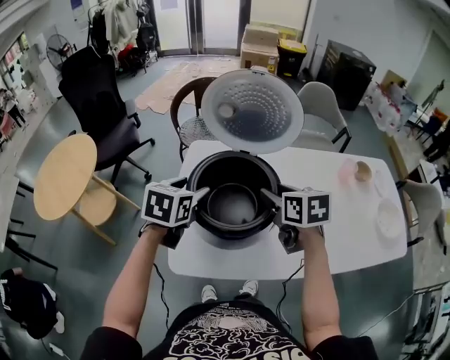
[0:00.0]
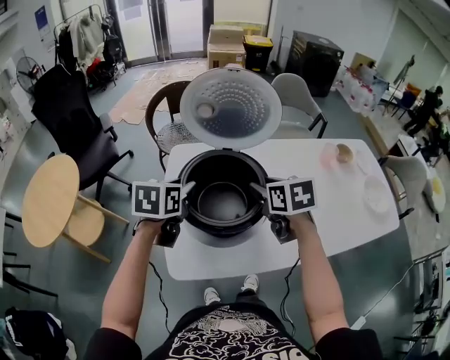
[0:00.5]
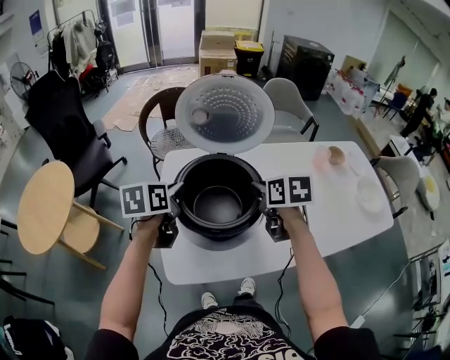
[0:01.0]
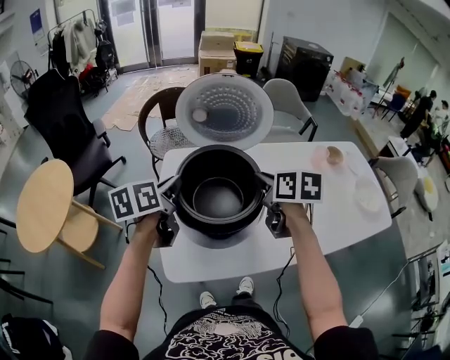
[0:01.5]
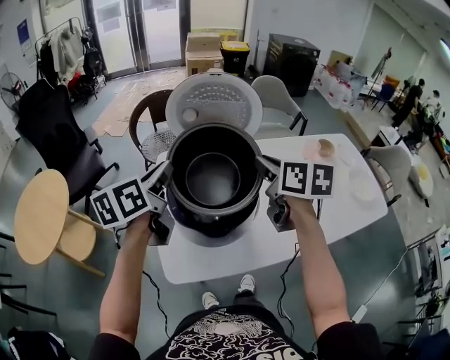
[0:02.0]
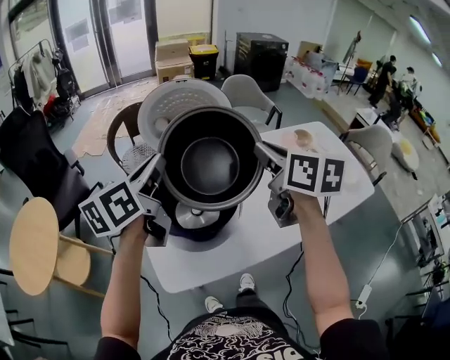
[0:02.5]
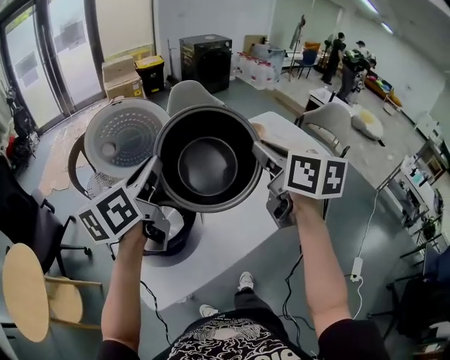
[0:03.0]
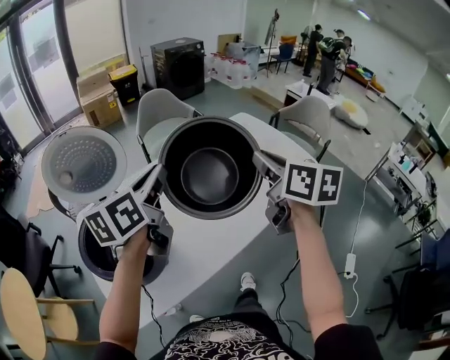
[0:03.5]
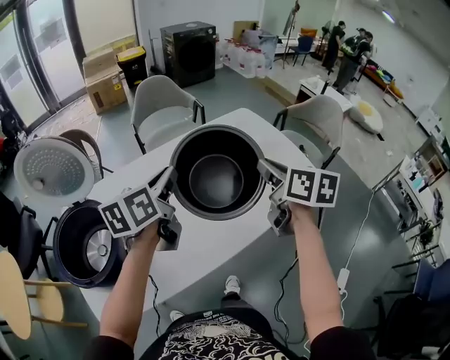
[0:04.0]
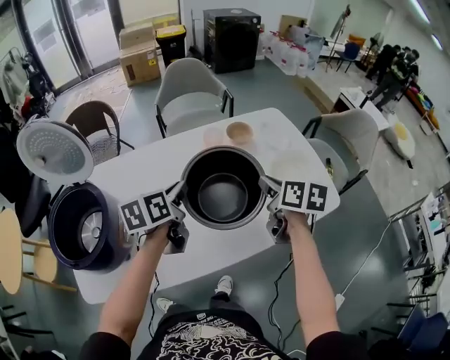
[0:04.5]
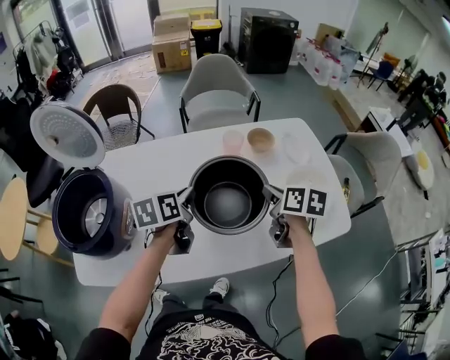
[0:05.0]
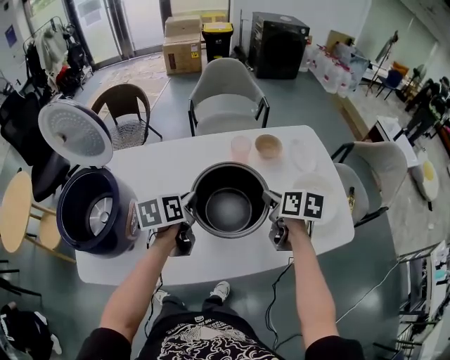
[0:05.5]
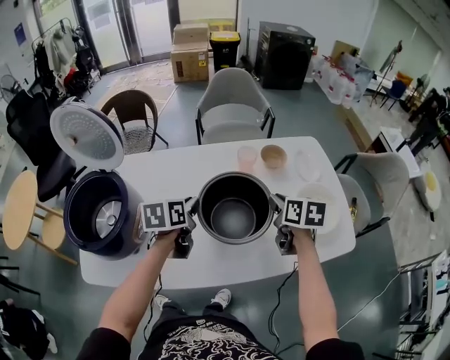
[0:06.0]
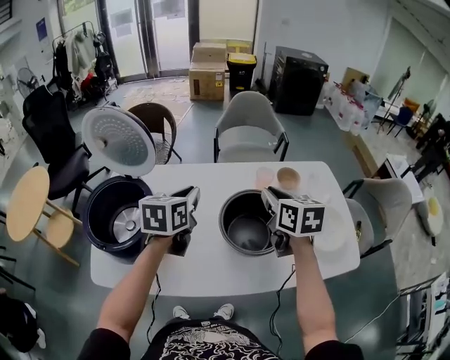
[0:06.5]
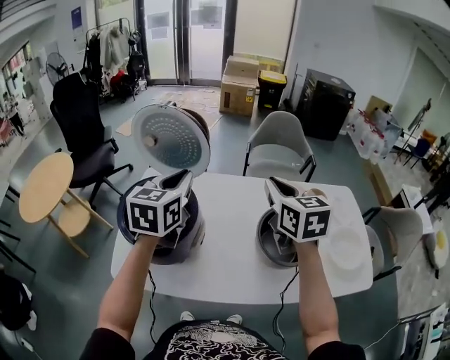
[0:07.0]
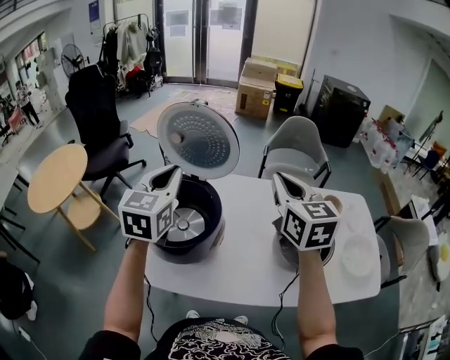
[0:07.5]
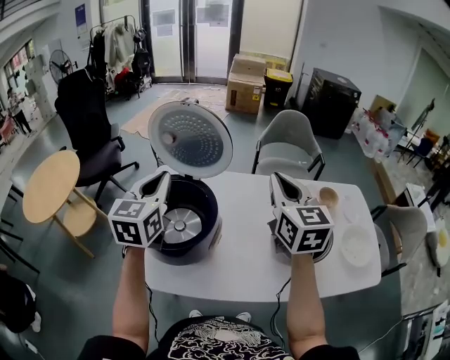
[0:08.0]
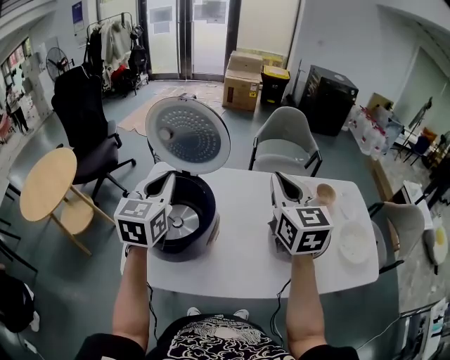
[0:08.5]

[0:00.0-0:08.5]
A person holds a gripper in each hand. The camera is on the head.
0:00.0 to 0:02.0: The grippers both shift upward by roughly 10 cm. The left gripper turns by approximately 40 degrees, and closes up. The right gripper changes its angle by about 20 degrees, and closes up.
0:02.0 to 0:04.0: The two grippers travel together, some 60 cm. The left gripper changes its angle by about 20 degrees, while the right gripper turns by roughly 30 degrees.
0:04.0 to 0:06.5: The left gripper reaches approximately 20 cm downward, then returns, and changes its angle by roughly 30 degrees, while the right gripper travels downward and back again, some 20 cm each way, and rotates some 30 degrees.
0:06.5 to 0:08.5: The right gripper heads to the left and upward, covering approximately 30 cm, and changes its angle by about 30 degrees, while the left gripper travels to the left by approximately 30 cm, and turns by about 30 degrees.

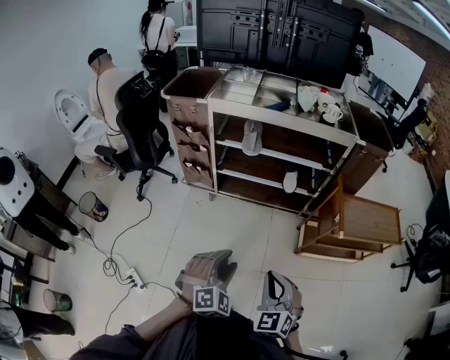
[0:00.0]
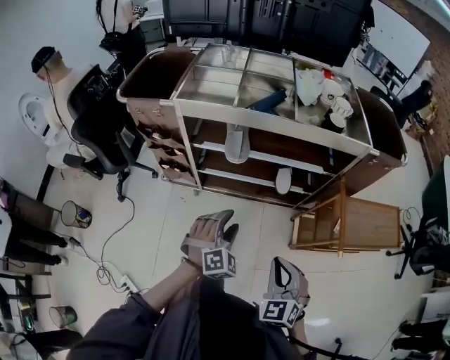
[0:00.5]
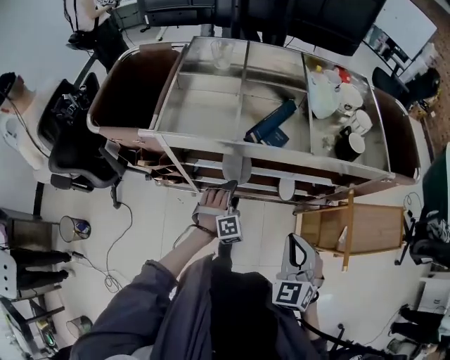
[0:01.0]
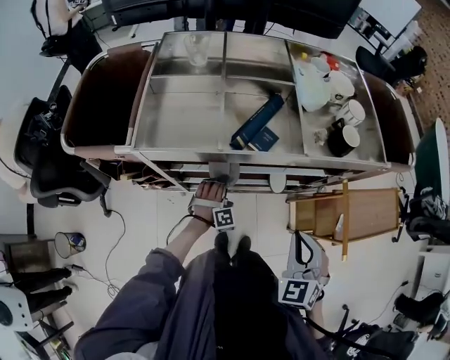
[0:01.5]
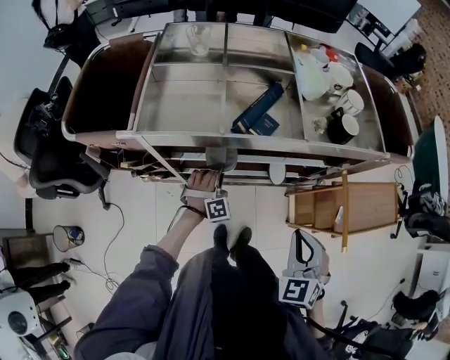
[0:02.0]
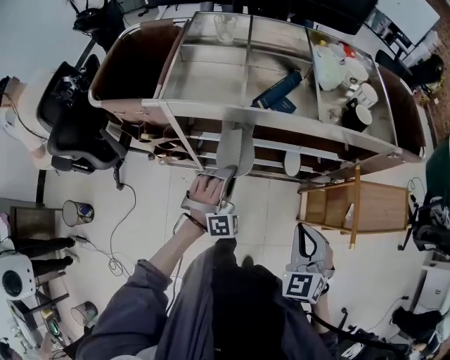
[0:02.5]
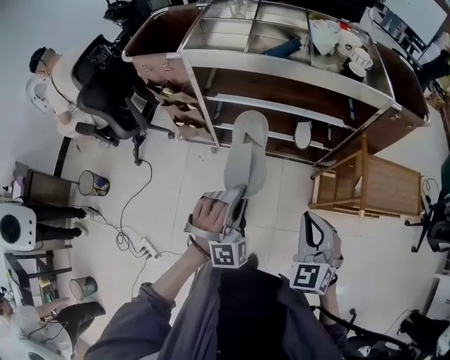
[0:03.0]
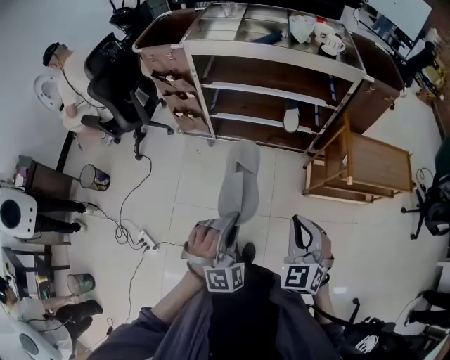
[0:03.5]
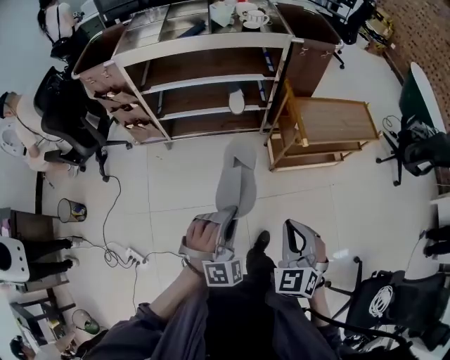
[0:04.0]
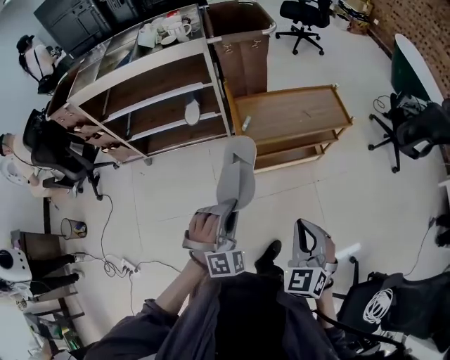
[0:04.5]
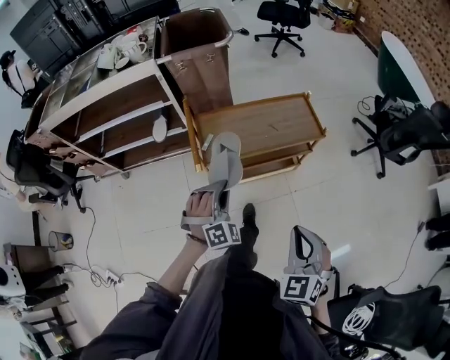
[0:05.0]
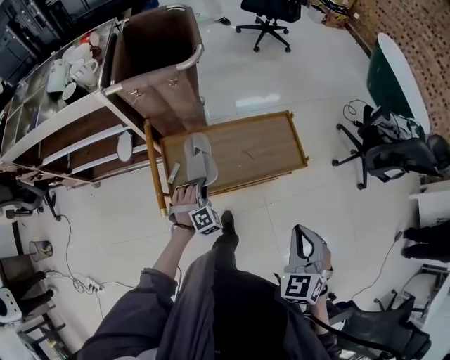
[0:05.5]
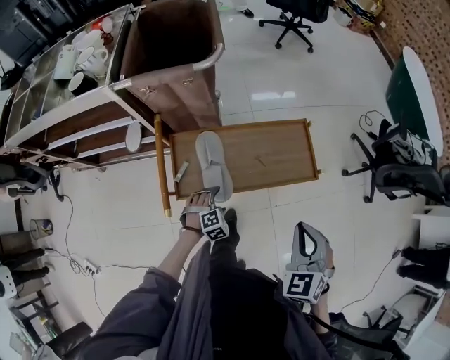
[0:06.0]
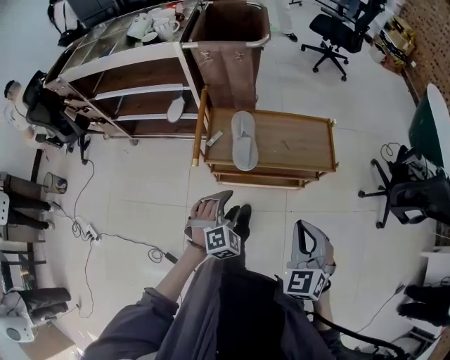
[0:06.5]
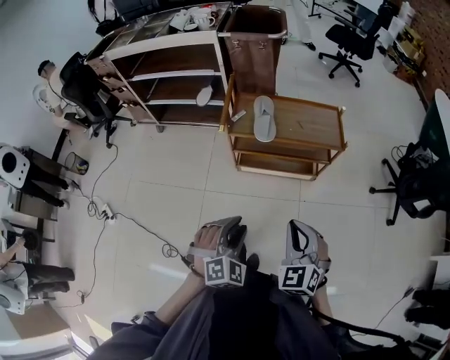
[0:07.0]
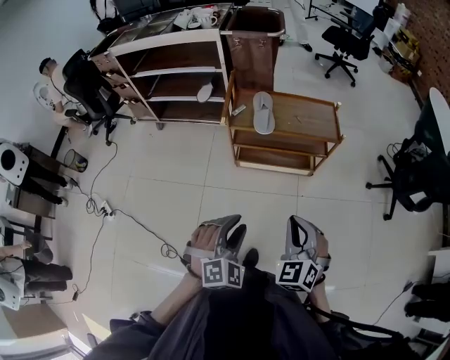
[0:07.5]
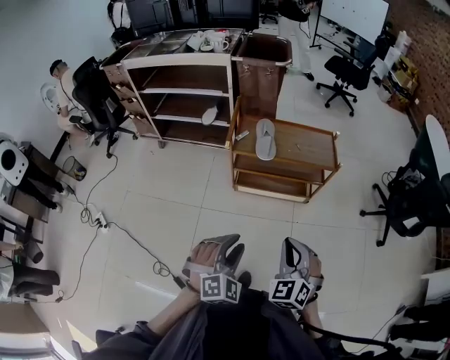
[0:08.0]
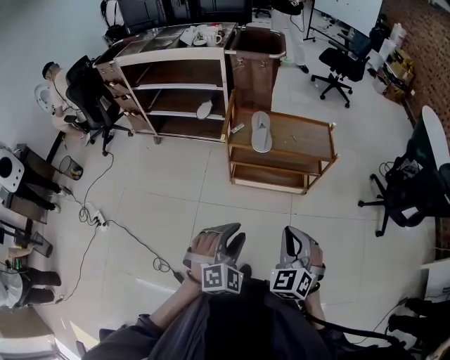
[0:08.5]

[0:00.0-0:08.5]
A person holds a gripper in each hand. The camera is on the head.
0:00.0 to 0:02.0: The pair of grippers is taken forward, about 50 cm. The left gripper rotates roughly 20 degrees, and closes its fingers.
0:02.0 to 0:04.0: The two grippers travel together, backward, about 60 cm.
0:04.0 to 0:06.5: The two grippers travel together, to the right and forward, some 60 cm. The left gripper rotates some 20 degrees, and opens up.
0:06.5 to 0:08.5: The left gripper shifts about 35 cm backward and upward, and closes its fingers. Meanwhile the right gripper shifts some 25 cm backward.

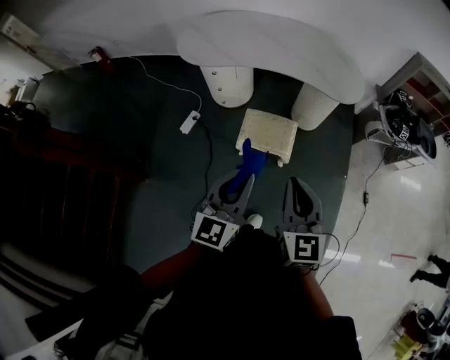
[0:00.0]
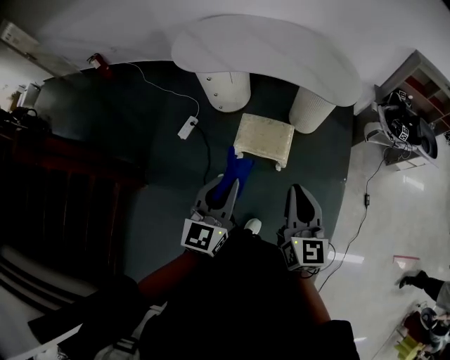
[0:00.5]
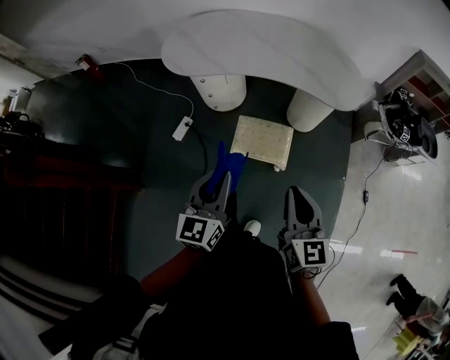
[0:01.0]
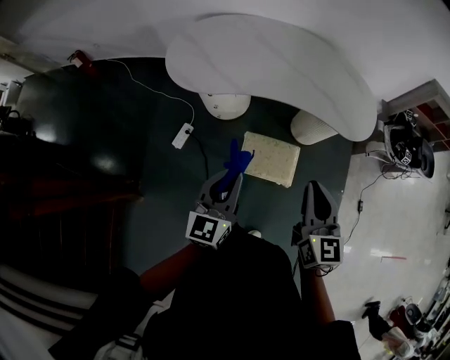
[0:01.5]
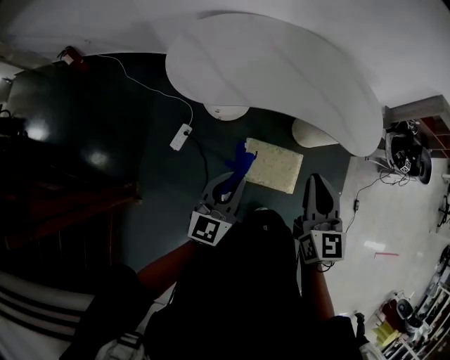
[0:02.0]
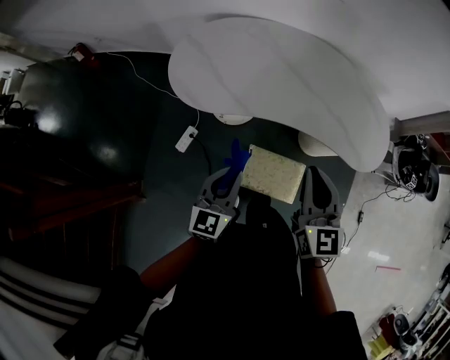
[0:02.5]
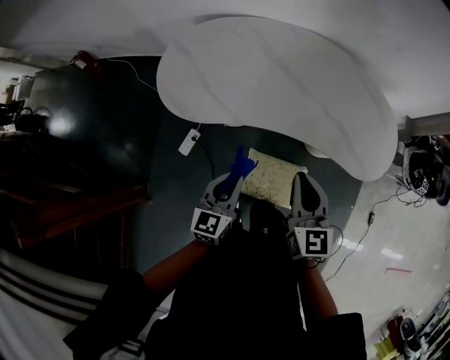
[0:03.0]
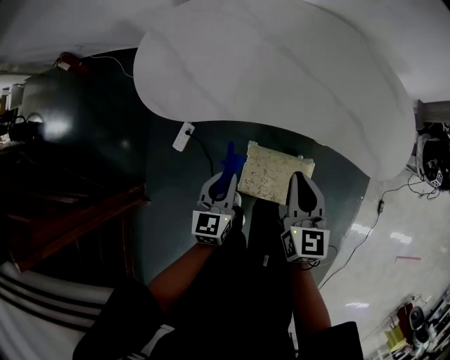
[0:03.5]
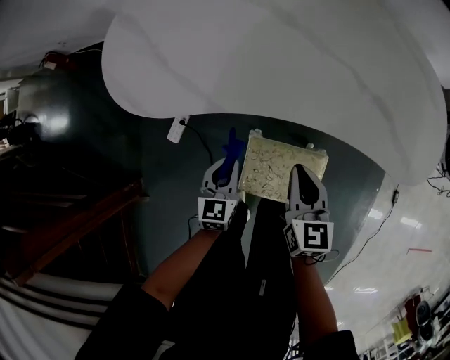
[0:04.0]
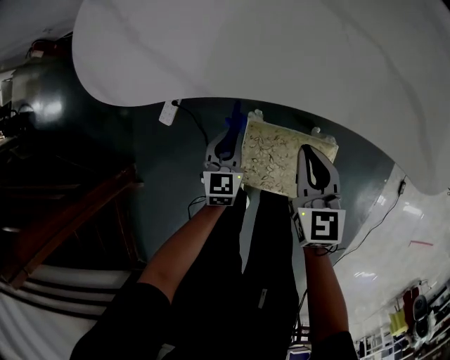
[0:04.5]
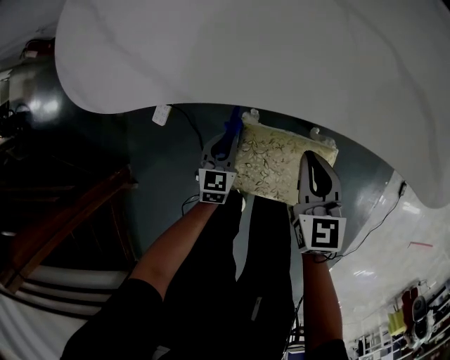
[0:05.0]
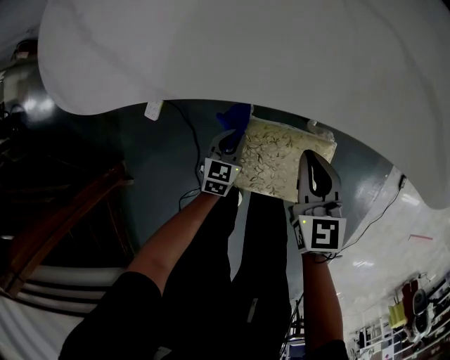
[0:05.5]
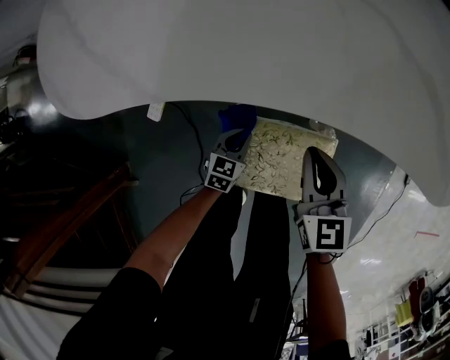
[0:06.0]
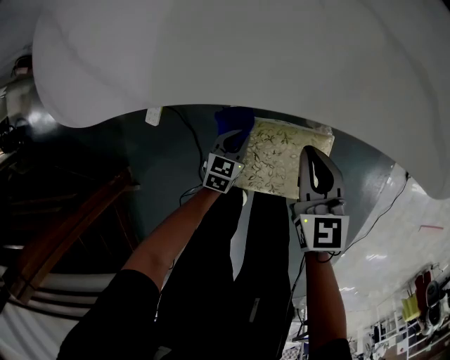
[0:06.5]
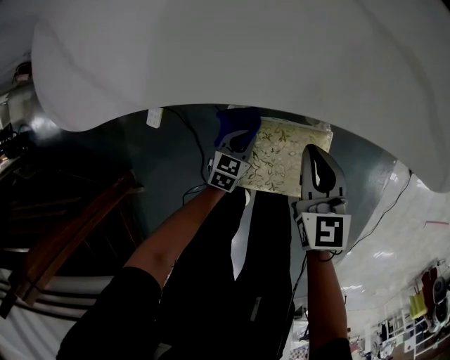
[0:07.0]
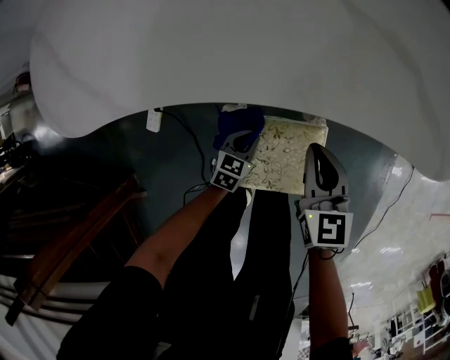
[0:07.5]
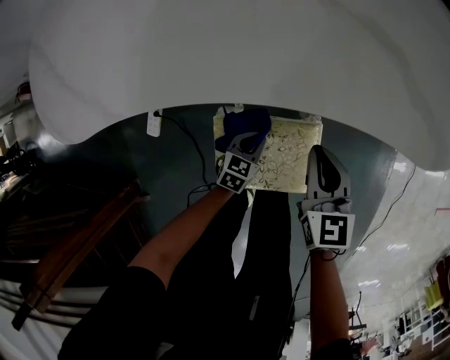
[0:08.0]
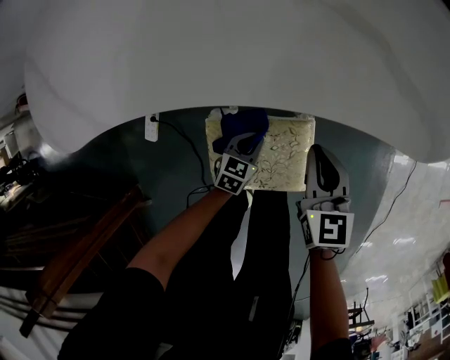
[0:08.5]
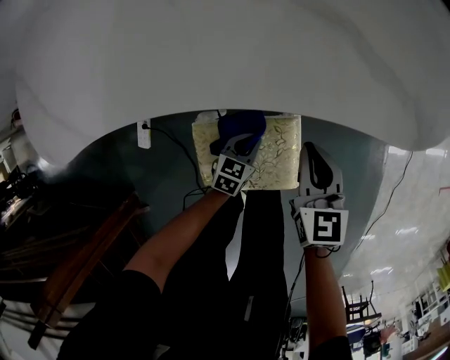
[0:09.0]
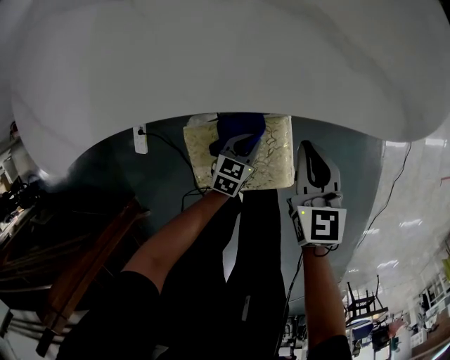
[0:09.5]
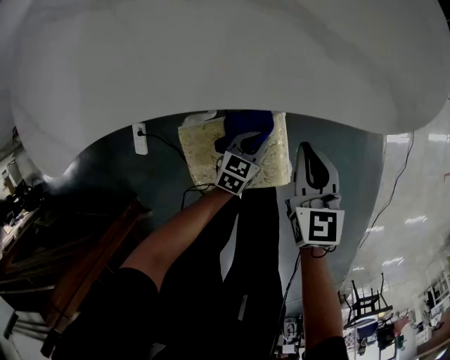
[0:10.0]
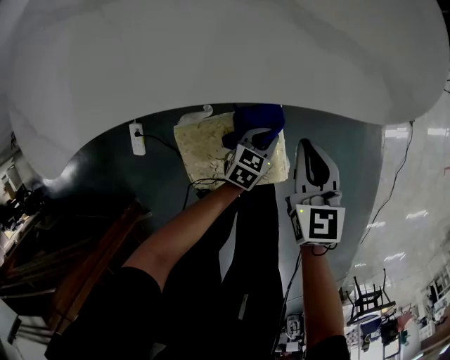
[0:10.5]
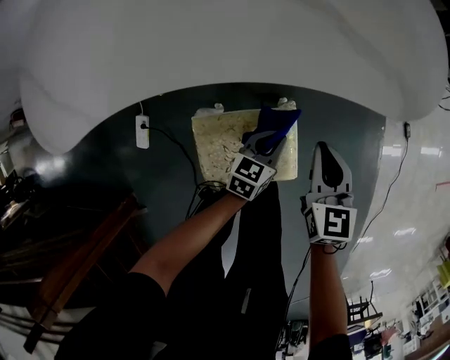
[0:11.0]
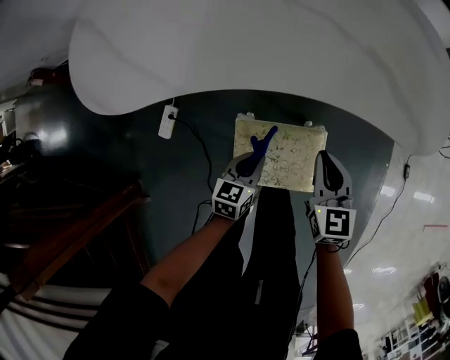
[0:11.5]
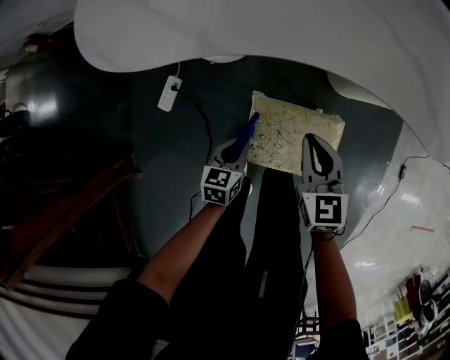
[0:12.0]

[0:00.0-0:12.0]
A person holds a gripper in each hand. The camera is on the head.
0:00.0 to 0:02.0: The left gripper goes roughly 35 cm forward and to the left, while the right gripper moves forward, some 35 cm.
0:02.0 to 0:04.0: Both grippers move downward and forward, roughly 40 cm. The left gripper changes its angle by roughly 30 degrees.
0:04.0 to 0:06.0: The right gripper goes about 15 cm downward. Meanwhile the left gripper moves downward, some 25 cm, and swivels about 20 degrees.
0:06.0 to 0:08.0: Both grippers travel together to the right, roughly 10 cm.
0:08.0 to 0:10.0: The grippers both shift to the right by approximately 10 cm.
0:10.0 to 0:12.0: The left gripper changes place by some 30 cm, and rotates approximately 40 degrees. The right gripper moves approximately 25 cm, and rotates about 30 degrees.
